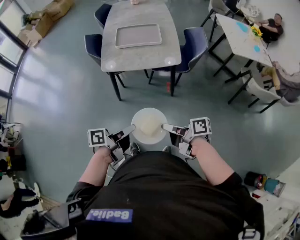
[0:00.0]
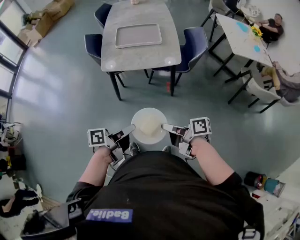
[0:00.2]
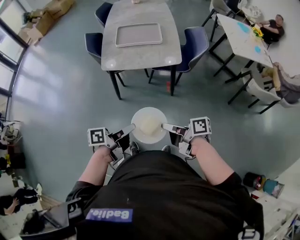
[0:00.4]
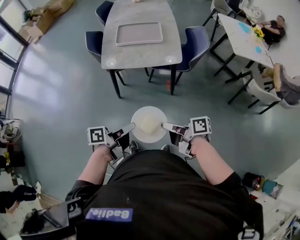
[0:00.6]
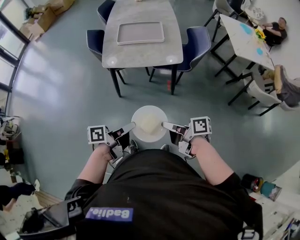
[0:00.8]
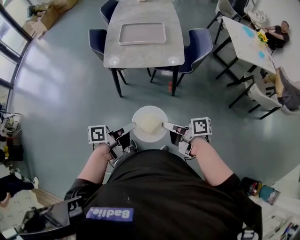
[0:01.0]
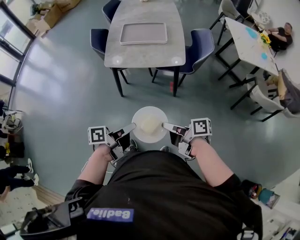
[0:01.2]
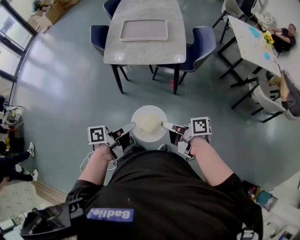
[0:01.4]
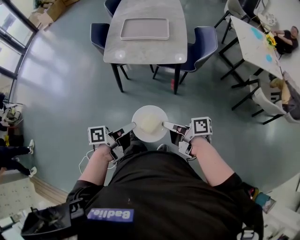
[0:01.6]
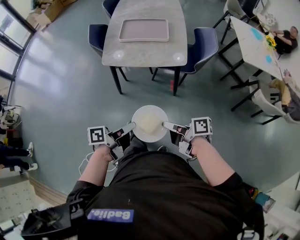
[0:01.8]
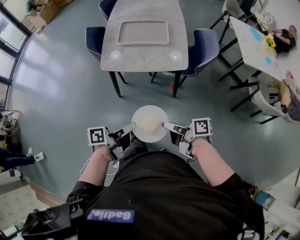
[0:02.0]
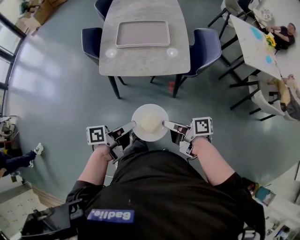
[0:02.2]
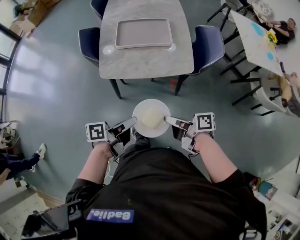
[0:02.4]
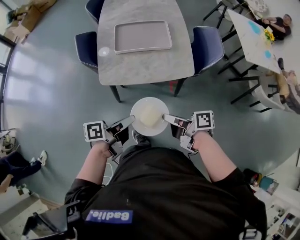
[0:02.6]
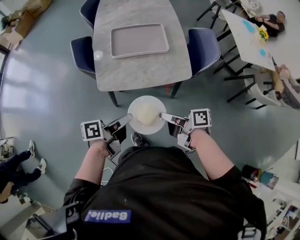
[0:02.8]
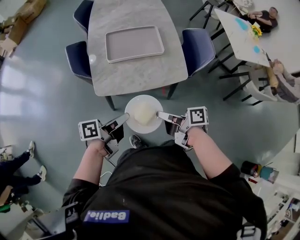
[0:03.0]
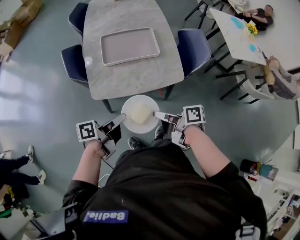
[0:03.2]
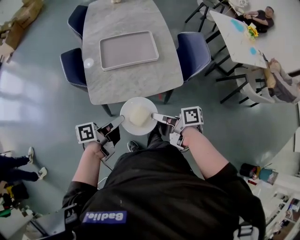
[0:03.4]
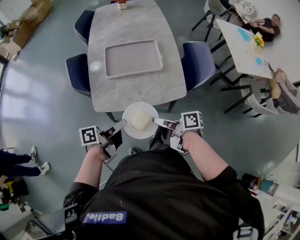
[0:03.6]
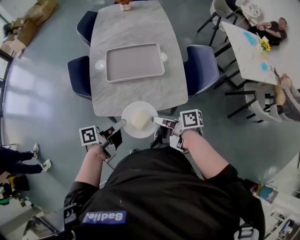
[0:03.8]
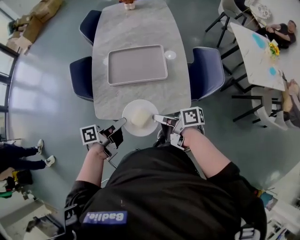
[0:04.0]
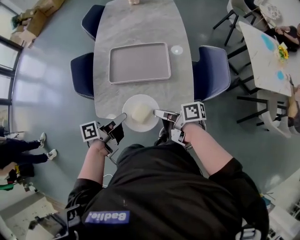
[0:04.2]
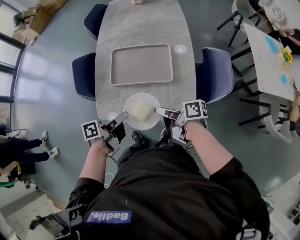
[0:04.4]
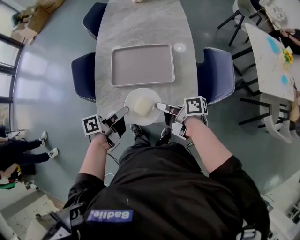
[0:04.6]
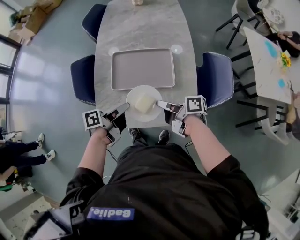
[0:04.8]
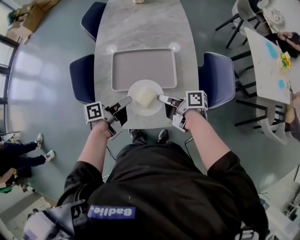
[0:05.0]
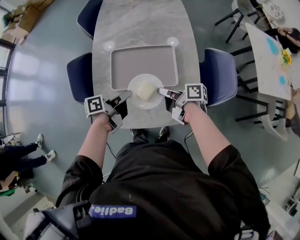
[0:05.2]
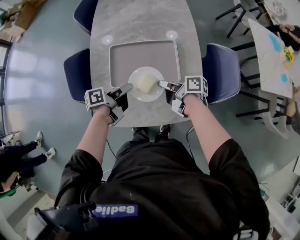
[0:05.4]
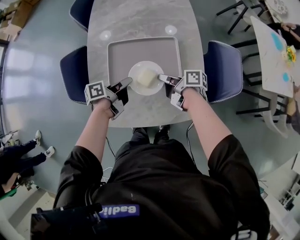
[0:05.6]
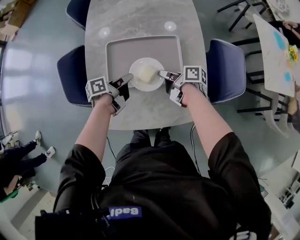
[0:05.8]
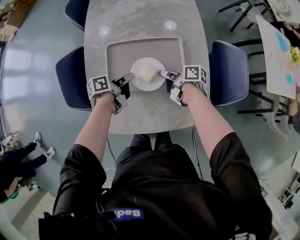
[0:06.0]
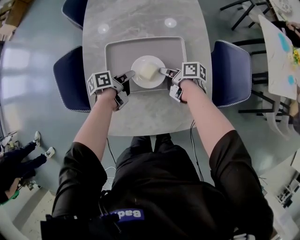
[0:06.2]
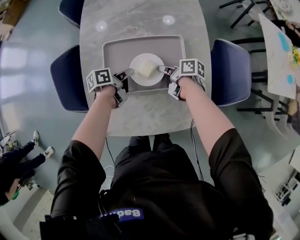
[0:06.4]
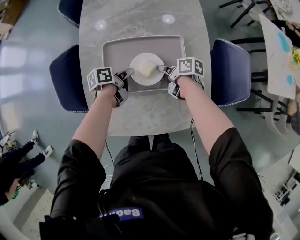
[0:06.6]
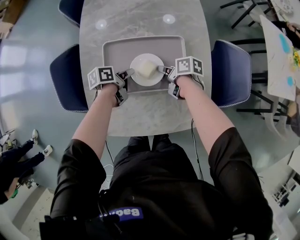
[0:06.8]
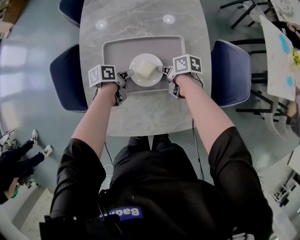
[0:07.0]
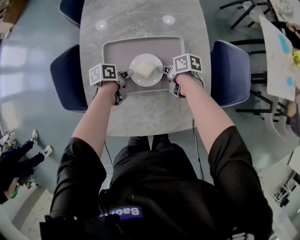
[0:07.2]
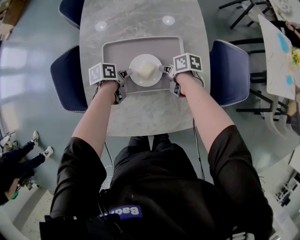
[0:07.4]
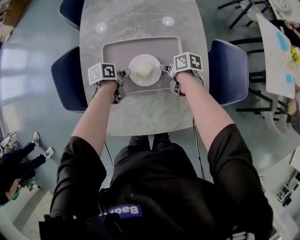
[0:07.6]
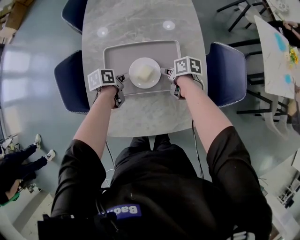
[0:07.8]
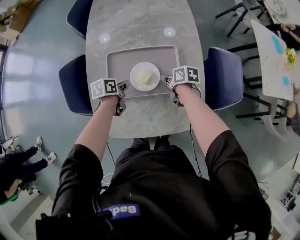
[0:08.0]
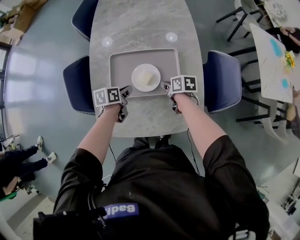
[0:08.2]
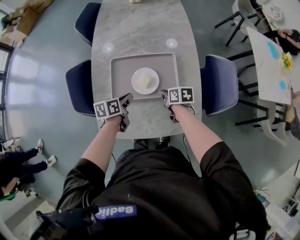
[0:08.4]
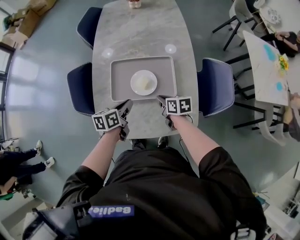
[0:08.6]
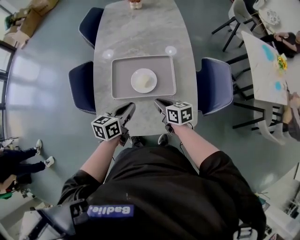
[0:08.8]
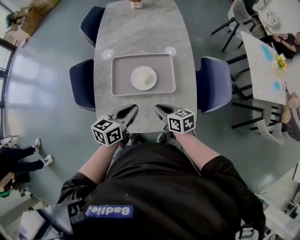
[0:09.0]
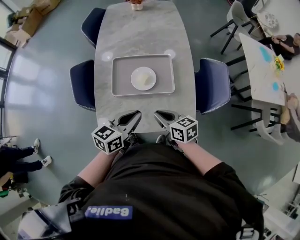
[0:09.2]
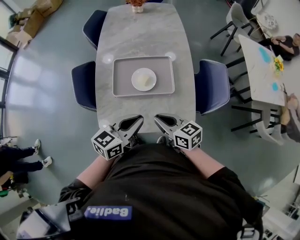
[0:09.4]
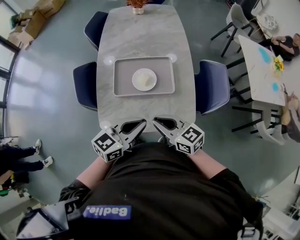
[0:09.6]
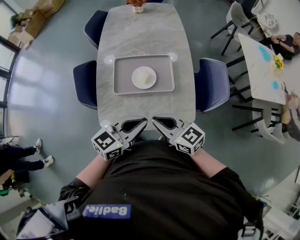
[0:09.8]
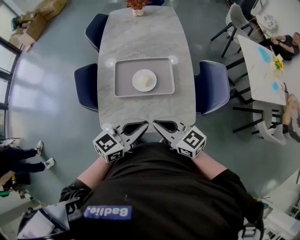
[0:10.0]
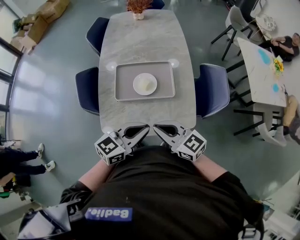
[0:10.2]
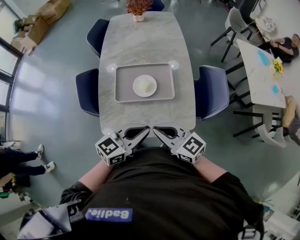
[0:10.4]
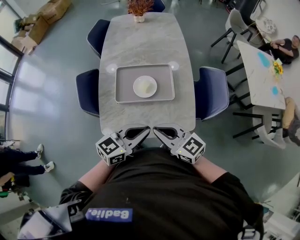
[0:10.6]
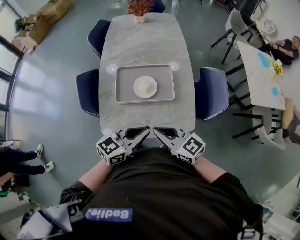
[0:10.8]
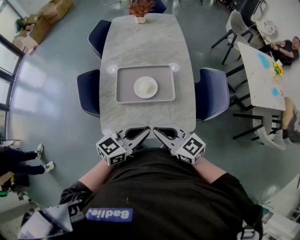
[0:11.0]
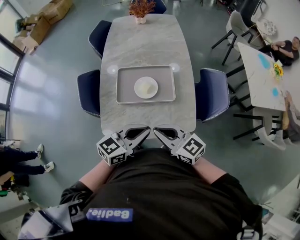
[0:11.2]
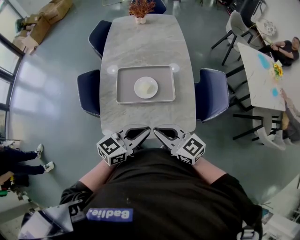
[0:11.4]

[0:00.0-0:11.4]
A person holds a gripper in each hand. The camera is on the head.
0:01.4 to 0:02.8: The left gripper ends up approximately 25 cm from where it was.
0:02.8 to 0:04.2: The left gripper changes place by roughly 15 cm.
0:04.2 to 0:05.6: The left gripper moves roughly 25 cm.
0:05.6 to 0:07.2: The left gripper is displaced downward by some 10 cm, and swivels approximately 30 degrees.
0:07.2 to 0:08.6: The left gripper shifts some 15 cm upward, and changes its angle by roughly 30 degrees.
0:08.6 to 0:10.0: The left gripper changes place by approximately 25 cm, and swivels approximately 40 degrees.

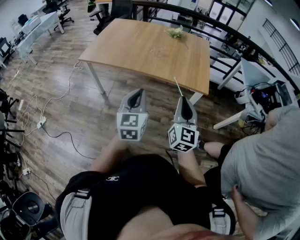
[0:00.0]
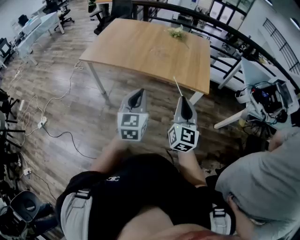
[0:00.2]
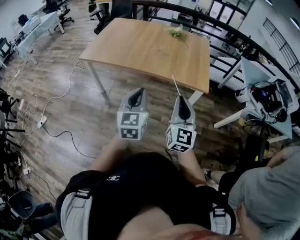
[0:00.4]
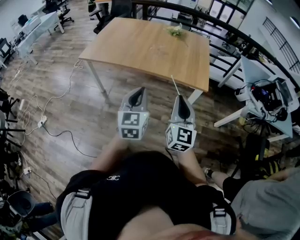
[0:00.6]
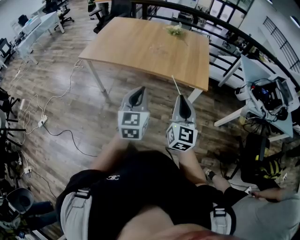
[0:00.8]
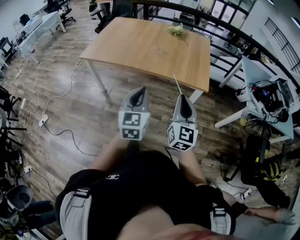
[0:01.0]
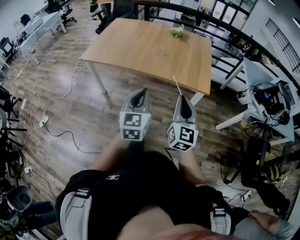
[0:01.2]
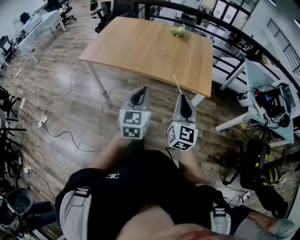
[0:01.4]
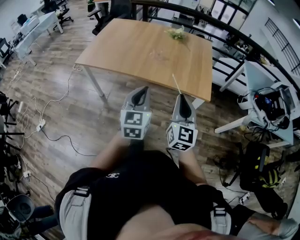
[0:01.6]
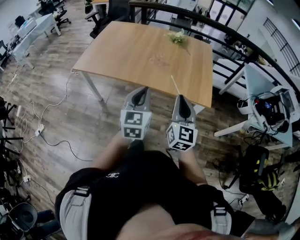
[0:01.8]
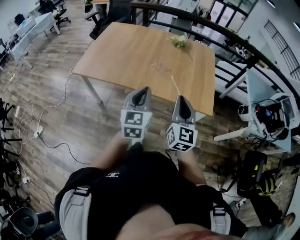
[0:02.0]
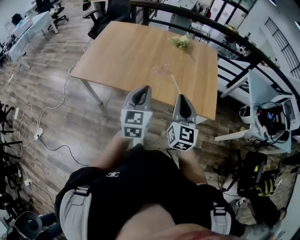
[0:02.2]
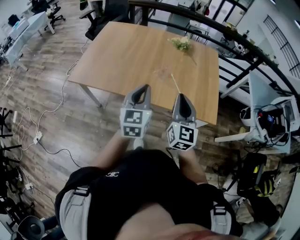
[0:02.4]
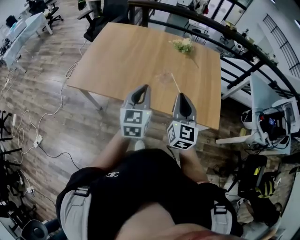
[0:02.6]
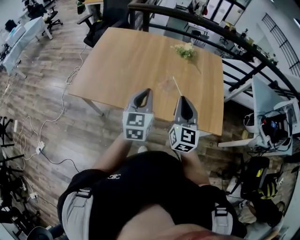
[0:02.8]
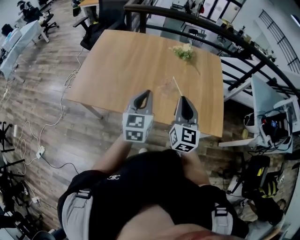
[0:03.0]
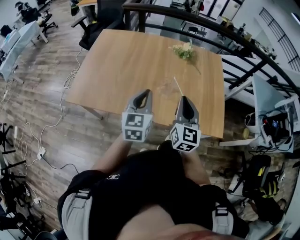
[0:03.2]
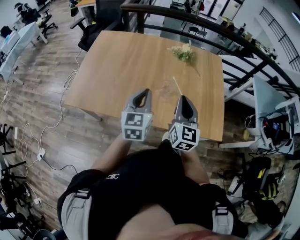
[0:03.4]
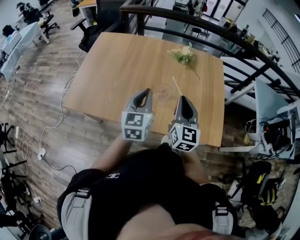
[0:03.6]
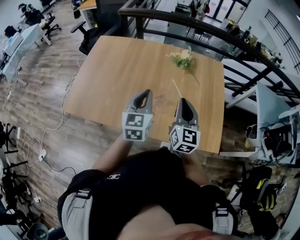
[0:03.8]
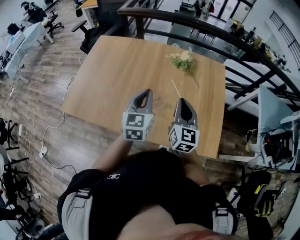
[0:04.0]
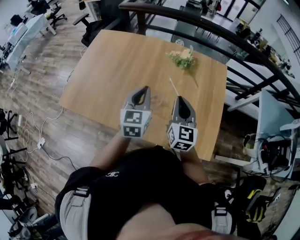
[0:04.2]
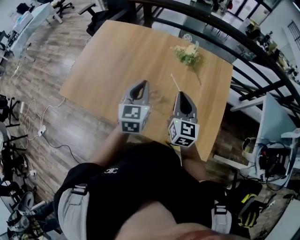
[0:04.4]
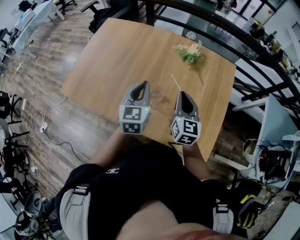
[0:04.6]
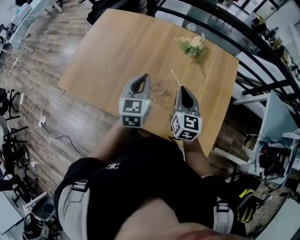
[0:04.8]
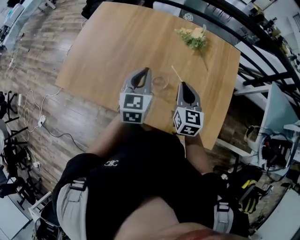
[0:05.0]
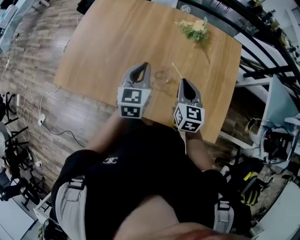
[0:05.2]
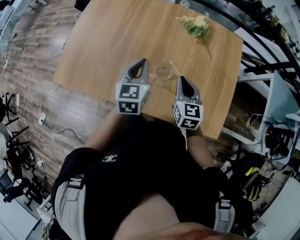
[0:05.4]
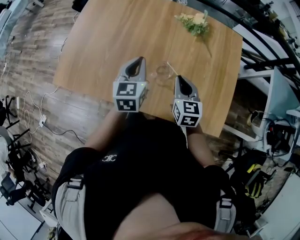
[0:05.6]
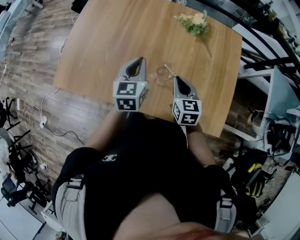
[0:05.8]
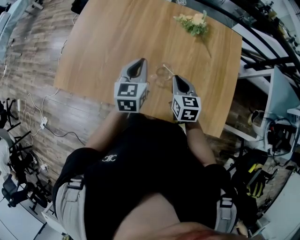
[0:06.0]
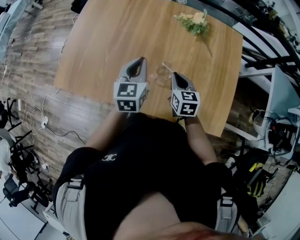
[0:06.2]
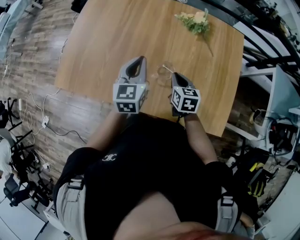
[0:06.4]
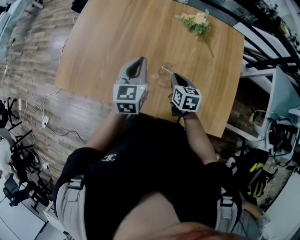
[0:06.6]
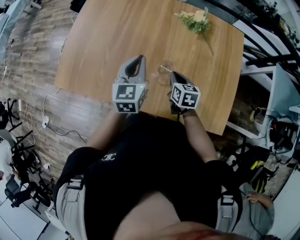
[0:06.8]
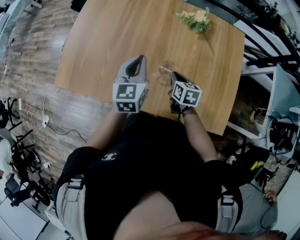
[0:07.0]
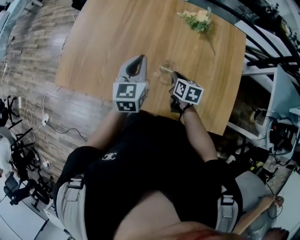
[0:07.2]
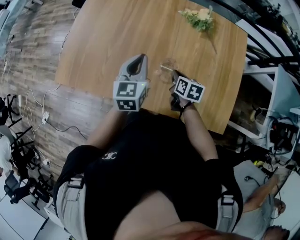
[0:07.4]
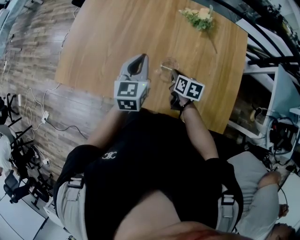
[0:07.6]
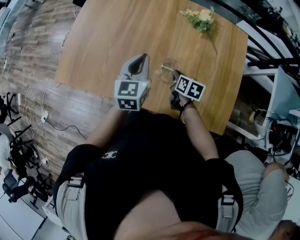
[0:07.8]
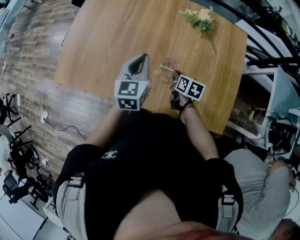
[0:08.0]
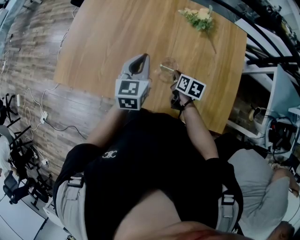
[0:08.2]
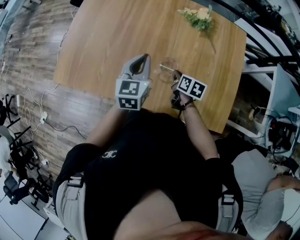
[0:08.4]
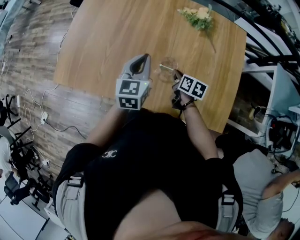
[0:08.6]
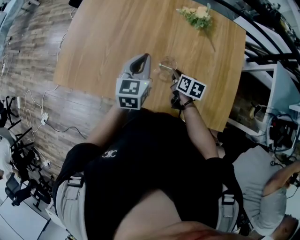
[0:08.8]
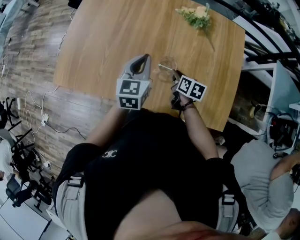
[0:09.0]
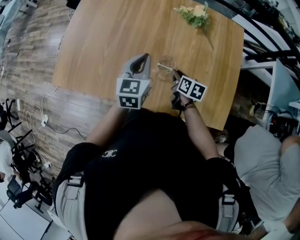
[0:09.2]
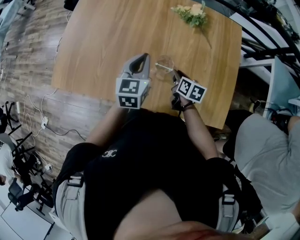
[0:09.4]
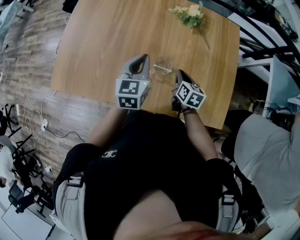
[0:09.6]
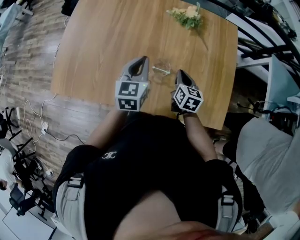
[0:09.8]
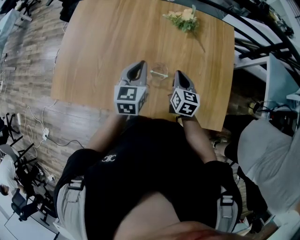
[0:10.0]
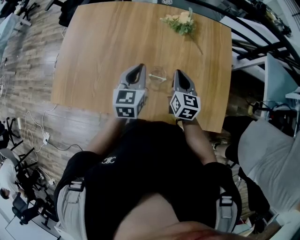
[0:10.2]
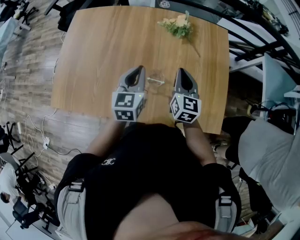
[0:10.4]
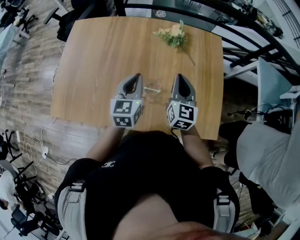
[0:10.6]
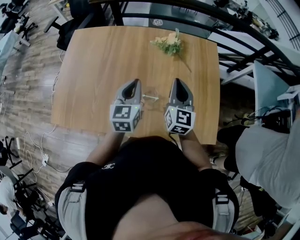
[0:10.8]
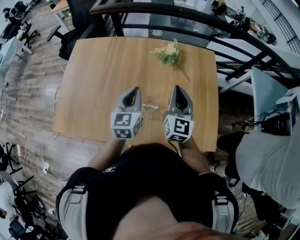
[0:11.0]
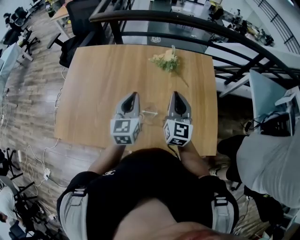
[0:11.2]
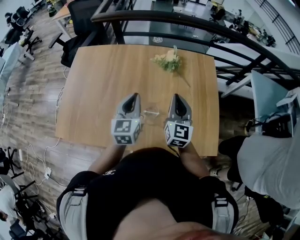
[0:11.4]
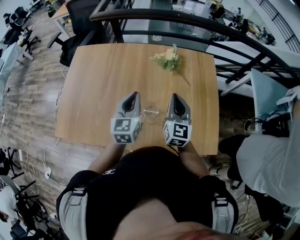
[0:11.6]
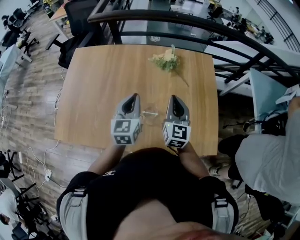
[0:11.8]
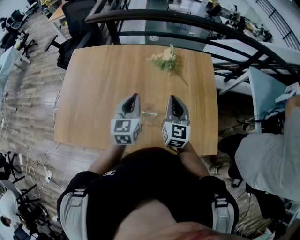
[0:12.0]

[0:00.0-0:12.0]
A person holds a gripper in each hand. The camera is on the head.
0:00.0 to 0:01.6: The grippers both shift forward by about 10 cm.
0:01.6 to 0:03.0: The left gripper shifts approximately 30 cm forward, while the right gripper is displaced forward and to the left by some 35 cm.
0:03.0 to 0:04.4: Both grippers move forward and to the right, approximately 20 cm.
0:04.4 to 0:06.0: The left gripper moves downward and to the left, about 10 cm, while the right gripper heads downward and to the left, covering approximately 15 cm, and rotates approximately 20 degrees.
0:06.0 to 0:07.6: The right gripper shifts roughly 10 cm downward, and changes its angle by approximately 30 degrees.
0:07.6 to 0:09.0: The grippers stay close to where they were, moving slightly.
0:09.0 to 0:10.4: The right gripper heads upward, covering roughly 15 cm, and changes its angle by roughly 50 degrees.
0:10.4 to 0:12.0: The right gripper moves upward, about 5 cm.

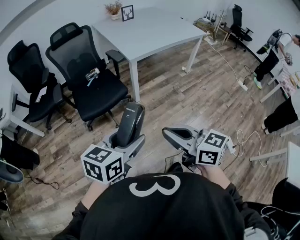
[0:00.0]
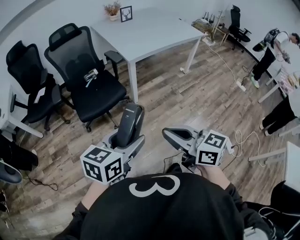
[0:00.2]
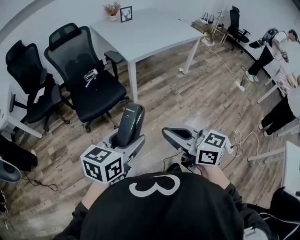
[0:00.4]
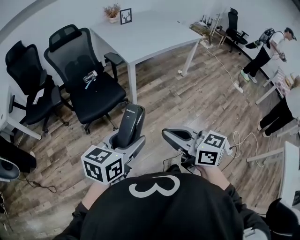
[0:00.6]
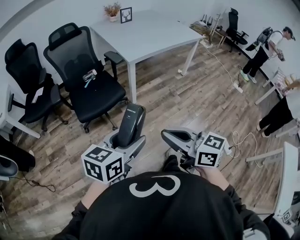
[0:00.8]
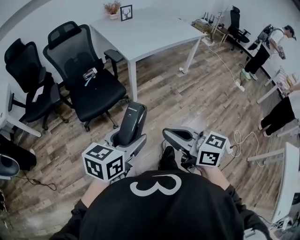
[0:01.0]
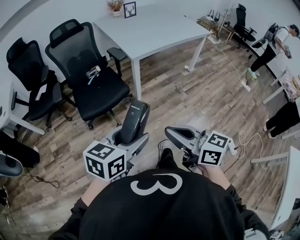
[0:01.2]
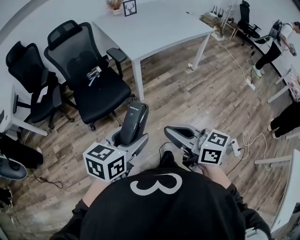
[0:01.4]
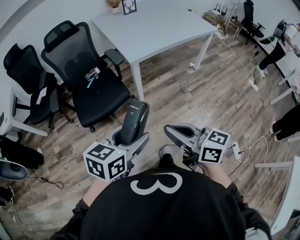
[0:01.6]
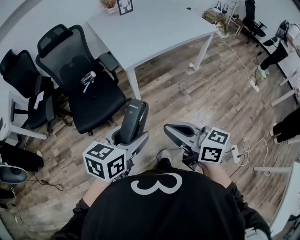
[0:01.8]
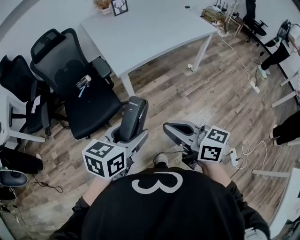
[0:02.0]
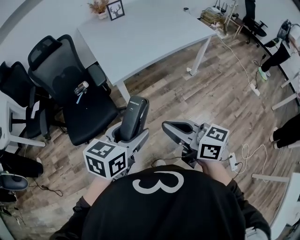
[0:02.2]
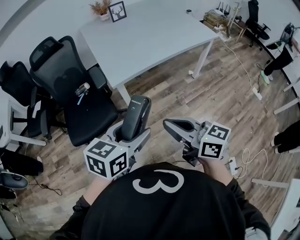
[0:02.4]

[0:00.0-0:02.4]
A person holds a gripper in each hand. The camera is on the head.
0:00.0 to 0:01.2: The grippers move only a little.
0:01.2 to 0:02.4: Both grippers travel together forward and to the right, roughly 30 cm.
